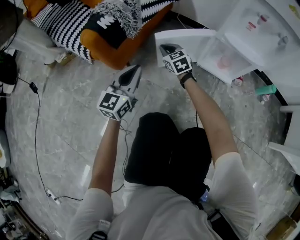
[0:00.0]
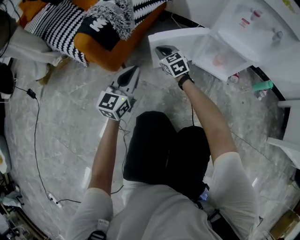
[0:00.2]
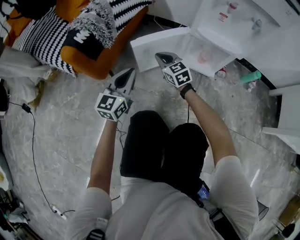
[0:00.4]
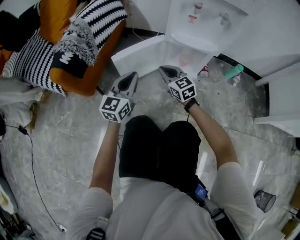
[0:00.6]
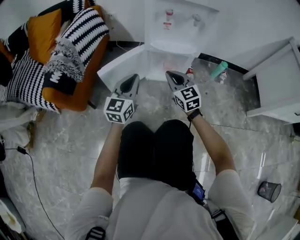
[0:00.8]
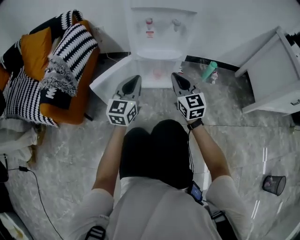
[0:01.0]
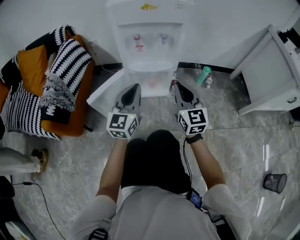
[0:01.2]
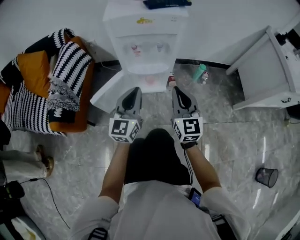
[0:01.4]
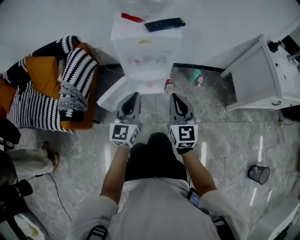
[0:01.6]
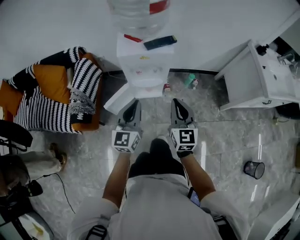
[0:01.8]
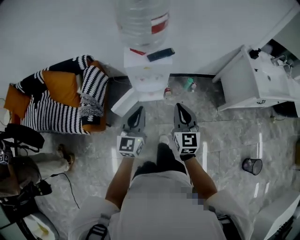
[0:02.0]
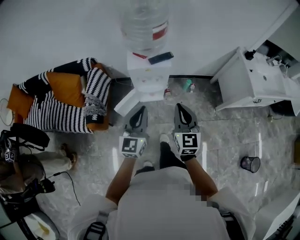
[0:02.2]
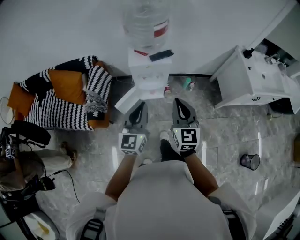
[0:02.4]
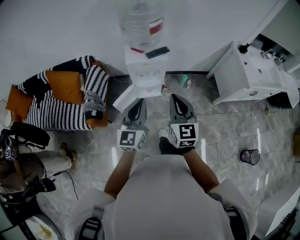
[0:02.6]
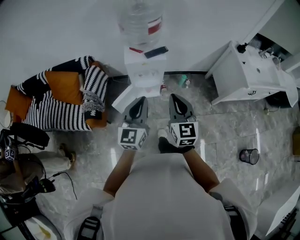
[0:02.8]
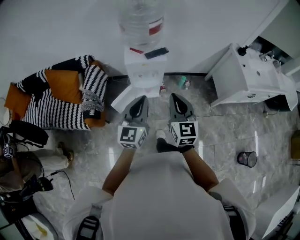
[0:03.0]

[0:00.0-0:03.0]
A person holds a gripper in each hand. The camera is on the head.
0:00.0 to 0:01.6: The left gripper shifts by about 40 cm. The right gripper changes place by some 60 cm, and rotates roughly 50 degrees.
0:01.6 to 0:03.0: Both grippers travel together upward, some 35 cm.

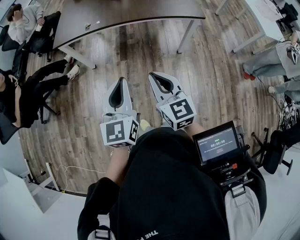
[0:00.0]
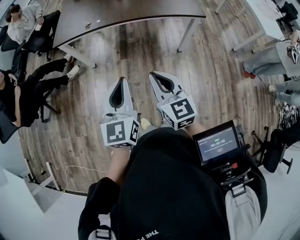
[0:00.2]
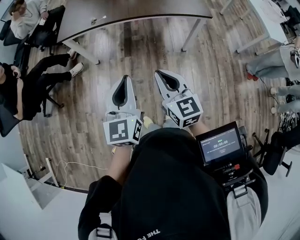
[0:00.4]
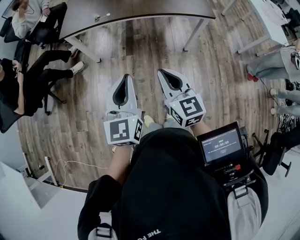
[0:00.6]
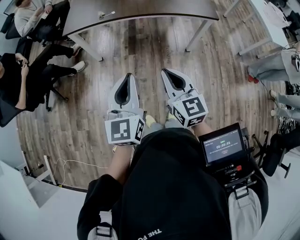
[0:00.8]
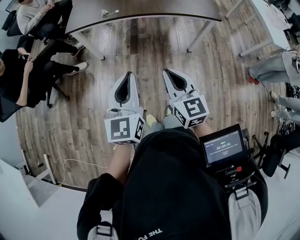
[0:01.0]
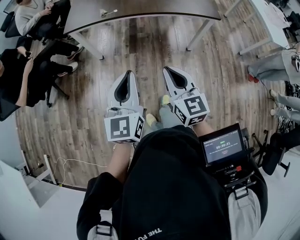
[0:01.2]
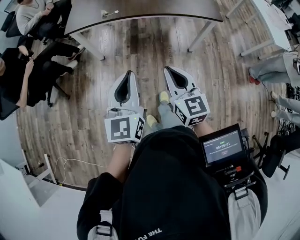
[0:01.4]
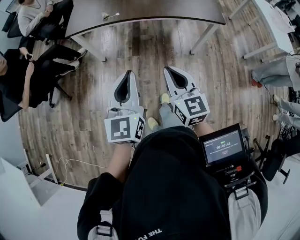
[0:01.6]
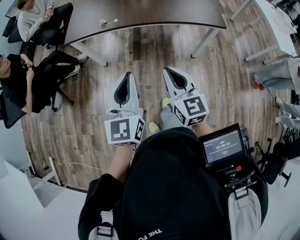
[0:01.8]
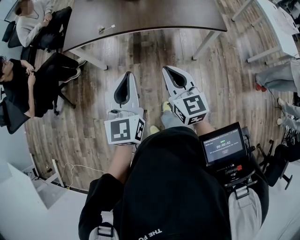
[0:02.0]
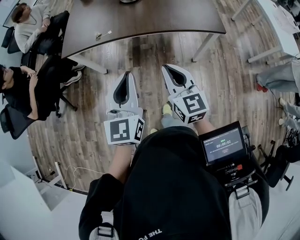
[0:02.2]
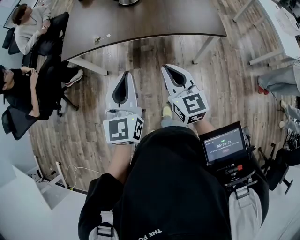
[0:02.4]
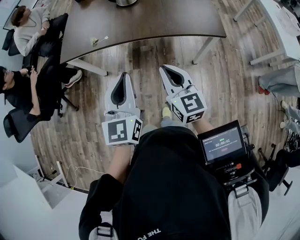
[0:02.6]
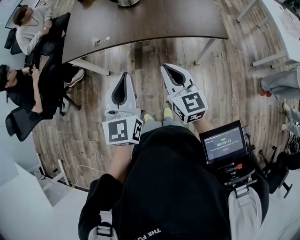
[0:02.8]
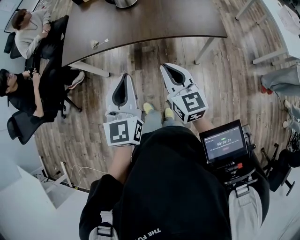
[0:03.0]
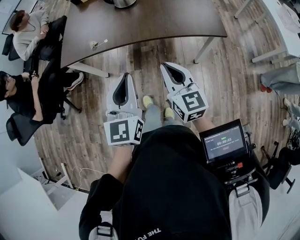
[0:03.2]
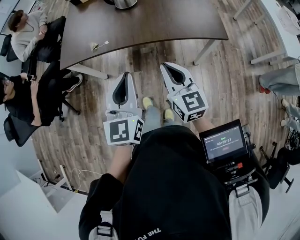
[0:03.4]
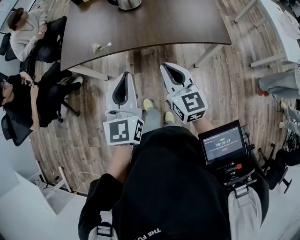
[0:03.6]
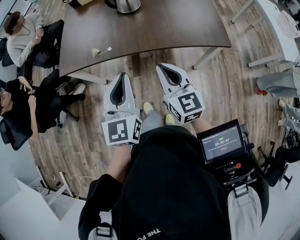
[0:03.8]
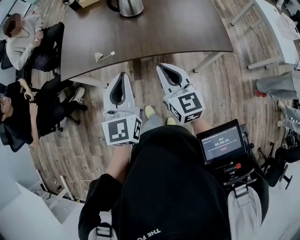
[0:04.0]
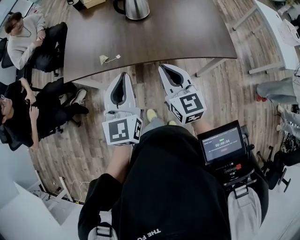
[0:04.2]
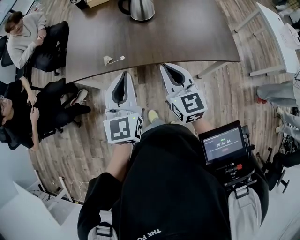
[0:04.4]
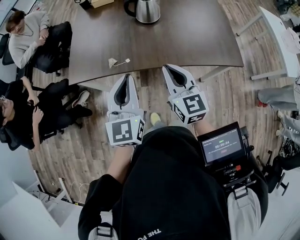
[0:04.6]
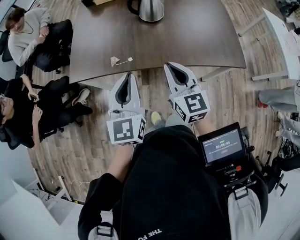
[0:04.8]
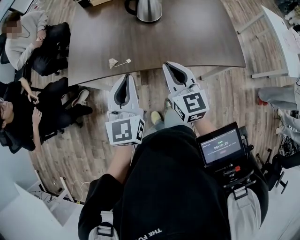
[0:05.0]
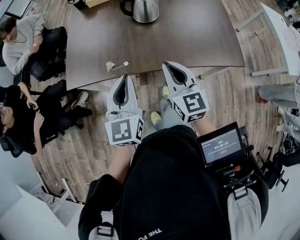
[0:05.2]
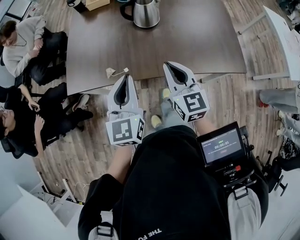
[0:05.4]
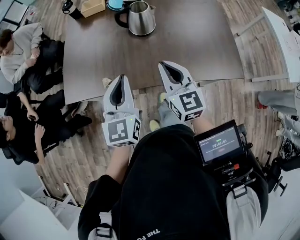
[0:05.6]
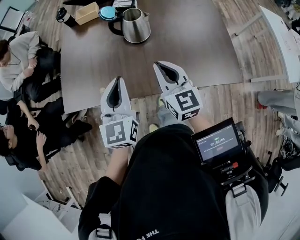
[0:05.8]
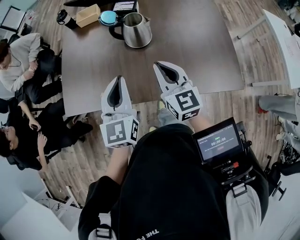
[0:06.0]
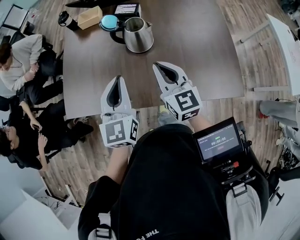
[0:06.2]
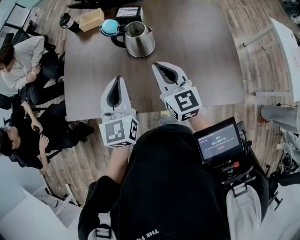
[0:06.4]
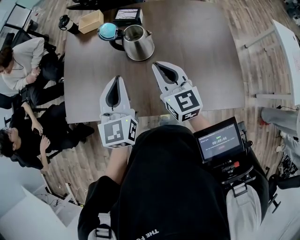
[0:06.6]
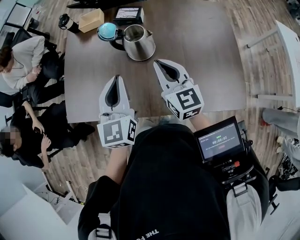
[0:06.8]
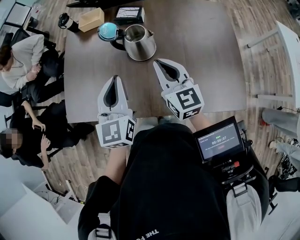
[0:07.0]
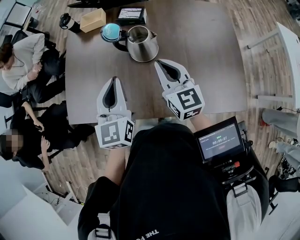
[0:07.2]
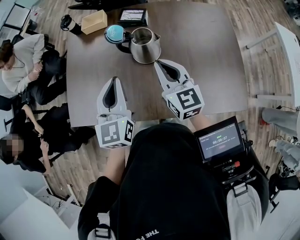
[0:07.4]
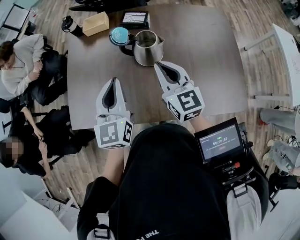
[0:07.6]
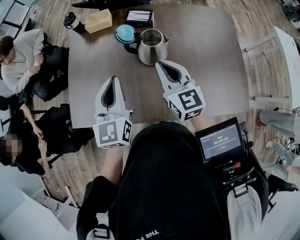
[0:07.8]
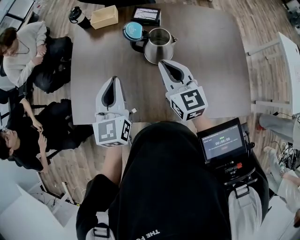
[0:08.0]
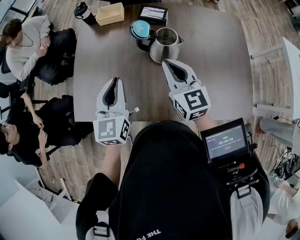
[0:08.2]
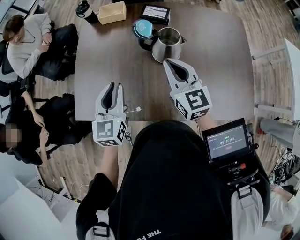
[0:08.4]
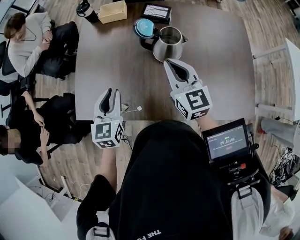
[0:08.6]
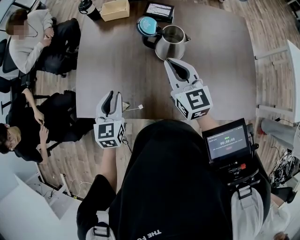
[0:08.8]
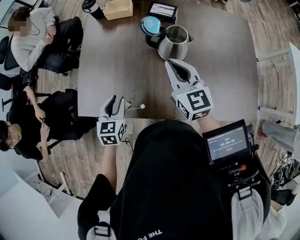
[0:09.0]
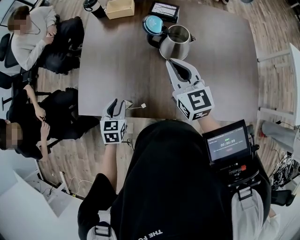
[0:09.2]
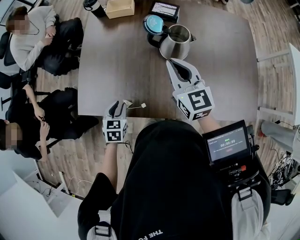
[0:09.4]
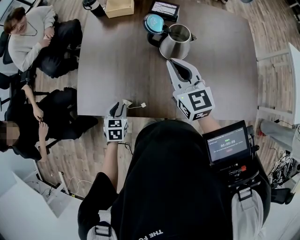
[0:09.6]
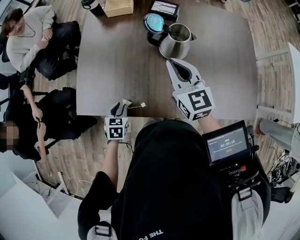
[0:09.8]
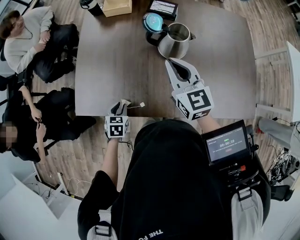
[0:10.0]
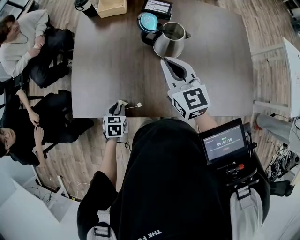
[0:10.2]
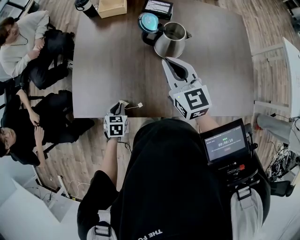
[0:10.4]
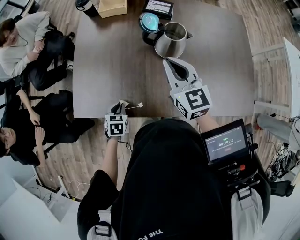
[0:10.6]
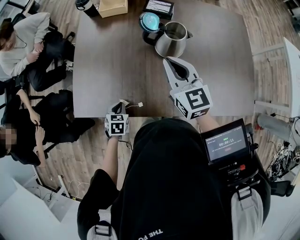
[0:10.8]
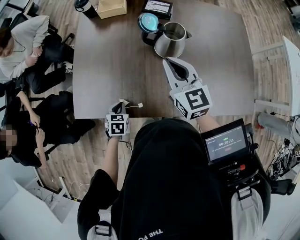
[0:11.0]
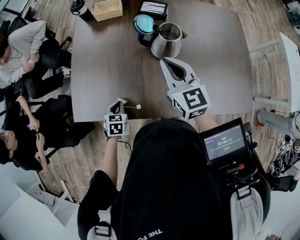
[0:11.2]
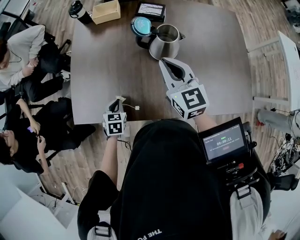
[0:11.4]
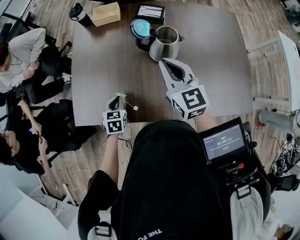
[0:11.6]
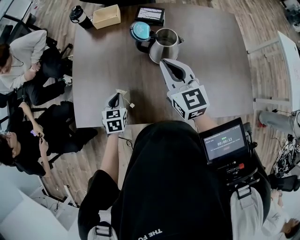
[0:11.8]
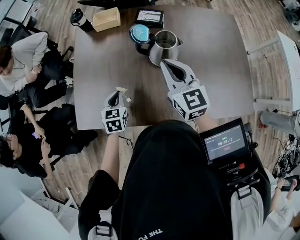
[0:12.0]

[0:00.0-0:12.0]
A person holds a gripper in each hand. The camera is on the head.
0:00.0 to 0:01.6: The right gripper shifts by roughly 5 cm, while the left gripper travels to the left by some 5 cm.
0:01.6 to 0:03.0: The two grippers go some 20 cm forward and to the right.
0:03.0 to 0:04.4: Both grippers travel together forward and to the left, approximately 20 cm.
0:04.4 to 0:06.0: Both grippers travel together forward, some 20 cm.
0:06.0 to 0:07.6: Both grippers travel together forward, some 15 cm.
0:07.6 to 0:09.0: The left gripper goes approximately 20 cm downward and to the left, rotates roughly 30 degrees, and opens its fingers. Meanwhile the right gripper shifts some 5 cm to the left.
0:09.0 to 0:10.4: The left gripper moves downward, roughly 15 cm, and changes its angle by some 20 degrees.
0:10.4 to 0:12.0: The left gripper moves forward and upward, some 15 cm.

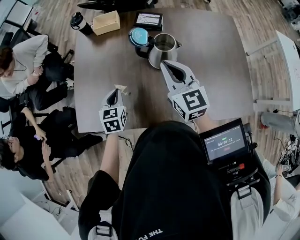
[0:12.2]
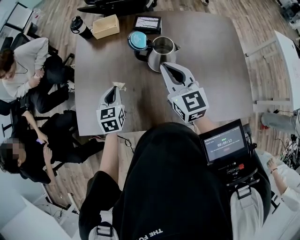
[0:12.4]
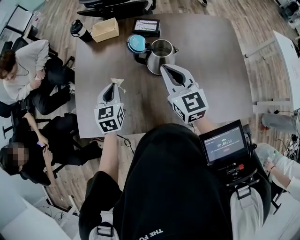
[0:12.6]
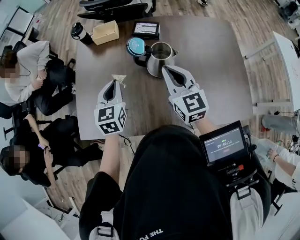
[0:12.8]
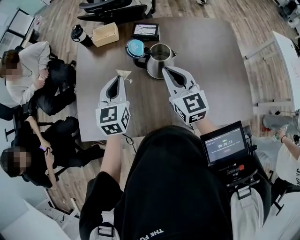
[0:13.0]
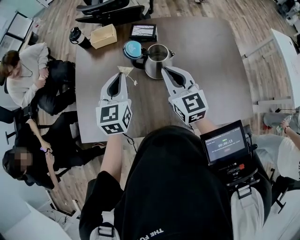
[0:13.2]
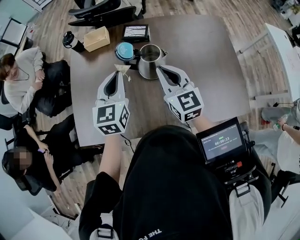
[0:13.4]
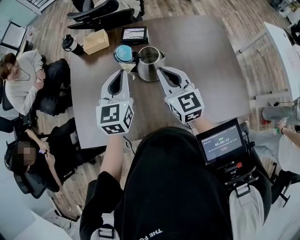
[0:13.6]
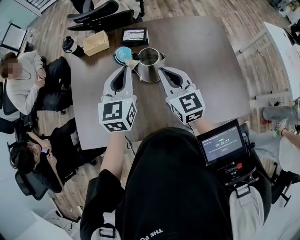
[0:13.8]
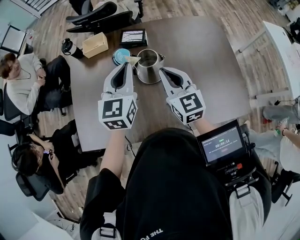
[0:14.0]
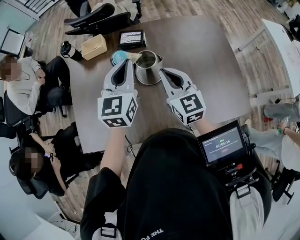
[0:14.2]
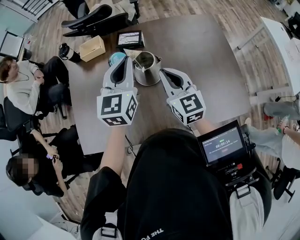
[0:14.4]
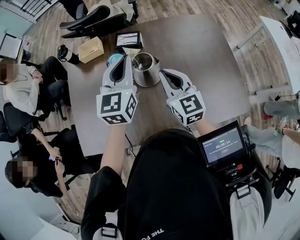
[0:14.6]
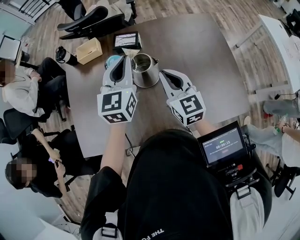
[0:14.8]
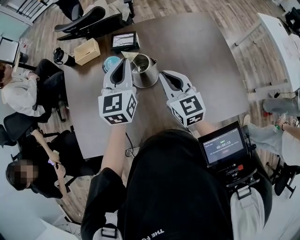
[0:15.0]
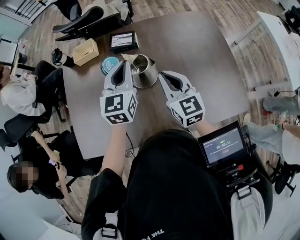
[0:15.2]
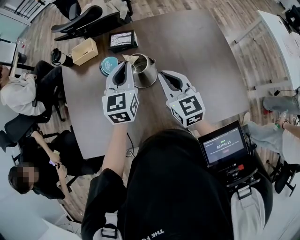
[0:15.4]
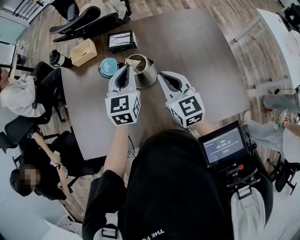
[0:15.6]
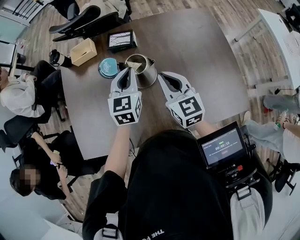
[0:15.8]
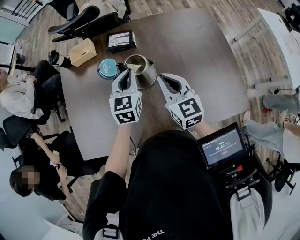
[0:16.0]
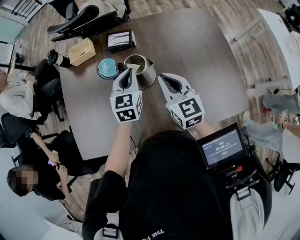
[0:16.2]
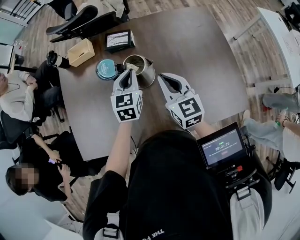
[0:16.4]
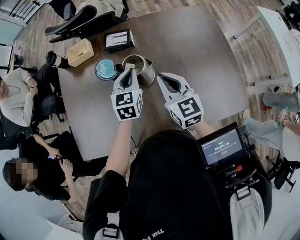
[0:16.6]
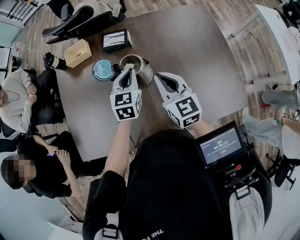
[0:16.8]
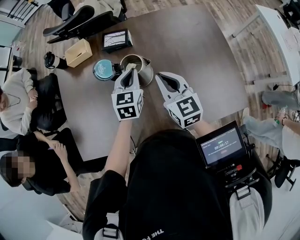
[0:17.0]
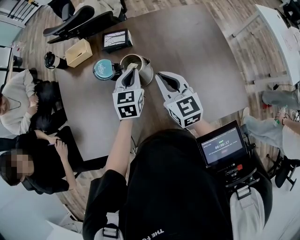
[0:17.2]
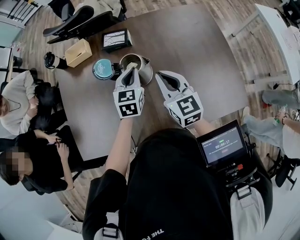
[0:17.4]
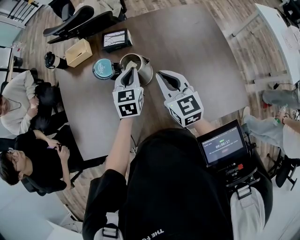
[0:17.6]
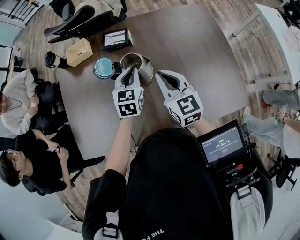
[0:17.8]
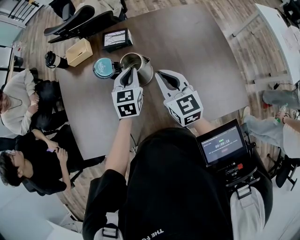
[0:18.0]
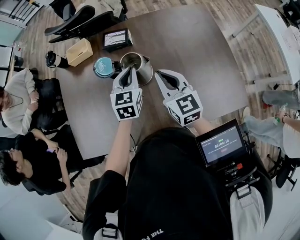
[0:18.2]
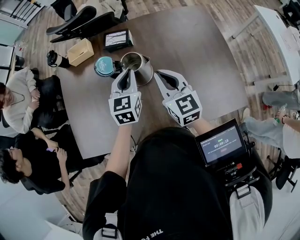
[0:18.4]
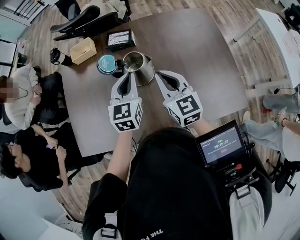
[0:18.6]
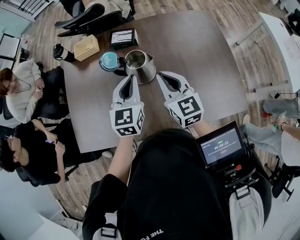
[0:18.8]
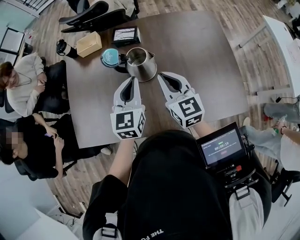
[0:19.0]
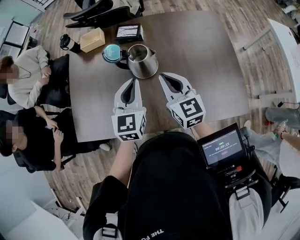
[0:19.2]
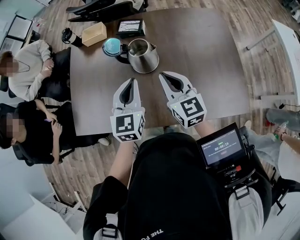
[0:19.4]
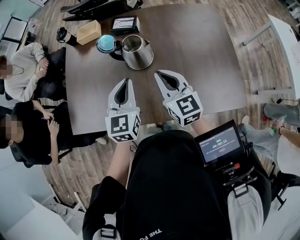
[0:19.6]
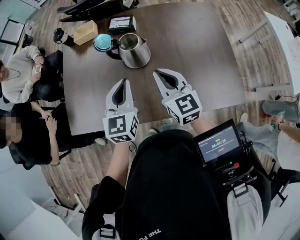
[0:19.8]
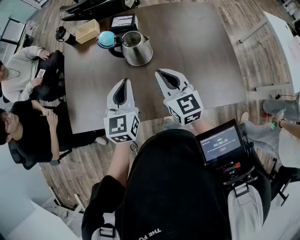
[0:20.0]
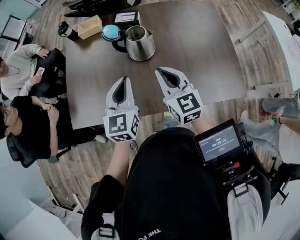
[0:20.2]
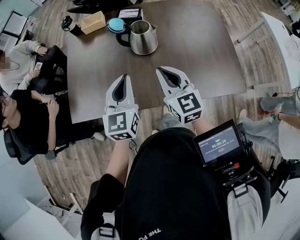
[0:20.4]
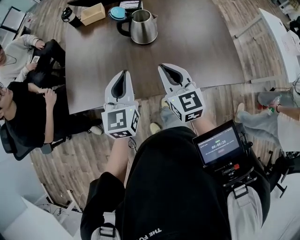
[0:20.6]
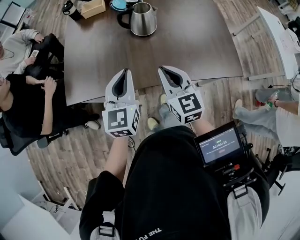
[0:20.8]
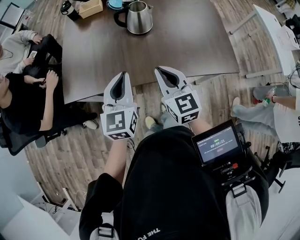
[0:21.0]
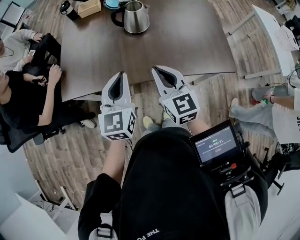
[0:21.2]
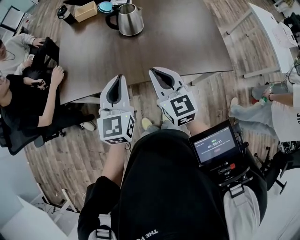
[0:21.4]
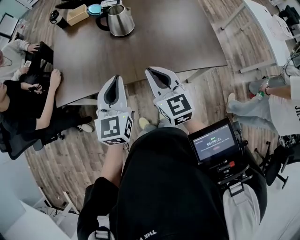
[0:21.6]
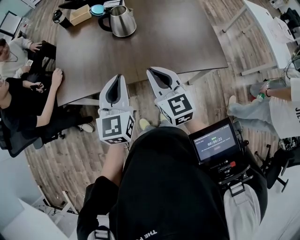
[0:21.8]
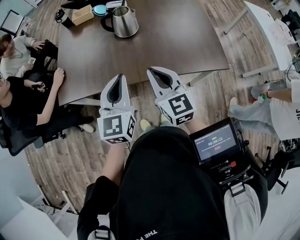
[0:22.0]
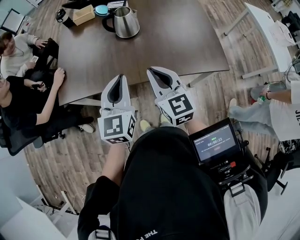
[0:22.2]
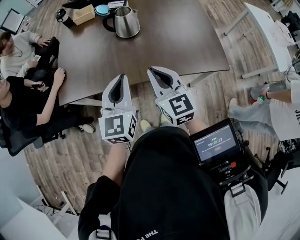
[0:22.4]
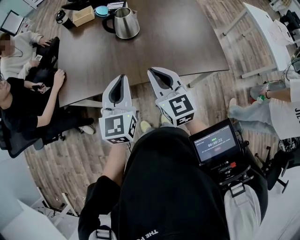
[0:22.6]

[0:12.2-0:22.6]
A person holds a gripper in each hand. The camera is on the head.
0:12.2 to 0:13.6: The right gripper goes some 5 cm to the right; the left gripper travels upward and to the right by roughly 25 cm, and rotates approximately 30 degrees.
0:13.6 to 0:15.2: The right gripper moves some 5 cm; the left gripper moves forward and to the right, approximately 10 cm.
0:15.2 to 0:16.6: The left gripper goes about 10 cm downward.
0:16.6 to 0:18.2: The grippers stay close to where they were, moving slightly.
0:18.2 to 0:19.6: The left gripper shifts roughly 20 cm backward and upward. Meanwhile the right gripper moves backward, some 10 cm.
0:19.6 to 0:21.2: The grippers both shift backward by roughly 20 cm.
0:21.2 to 0:22.6: The left gripper moves to the right, about 5 cm.
